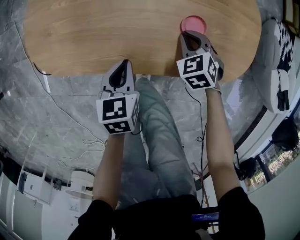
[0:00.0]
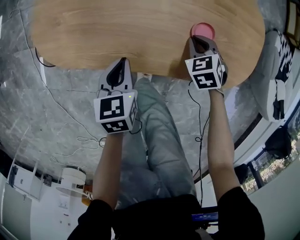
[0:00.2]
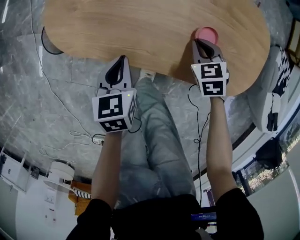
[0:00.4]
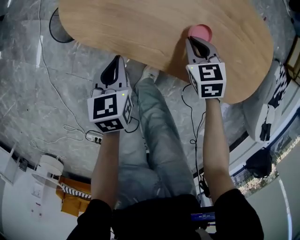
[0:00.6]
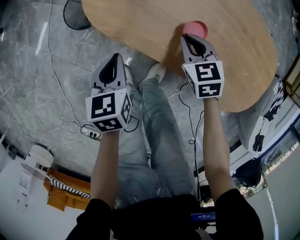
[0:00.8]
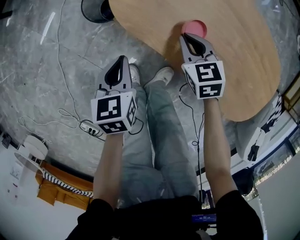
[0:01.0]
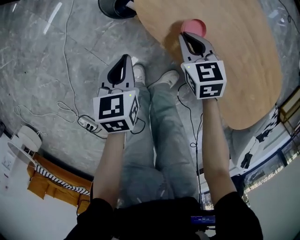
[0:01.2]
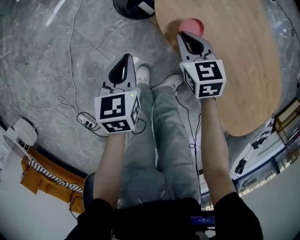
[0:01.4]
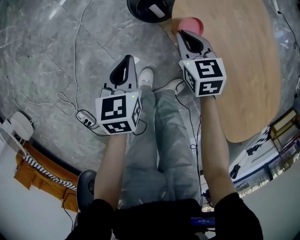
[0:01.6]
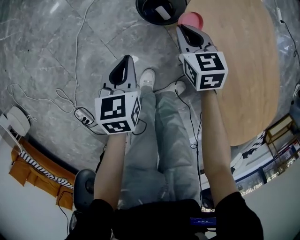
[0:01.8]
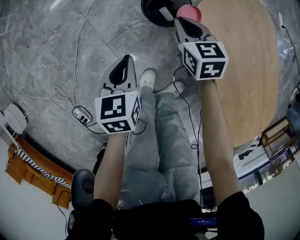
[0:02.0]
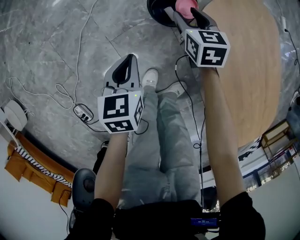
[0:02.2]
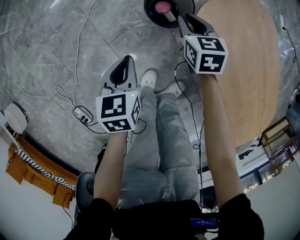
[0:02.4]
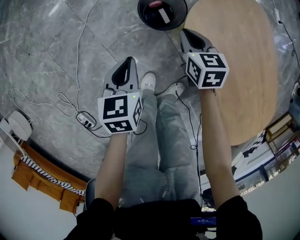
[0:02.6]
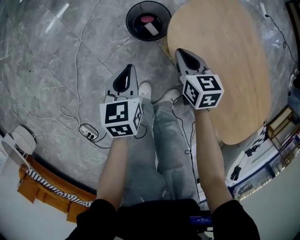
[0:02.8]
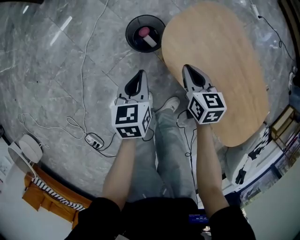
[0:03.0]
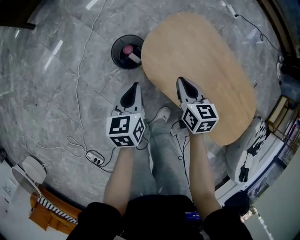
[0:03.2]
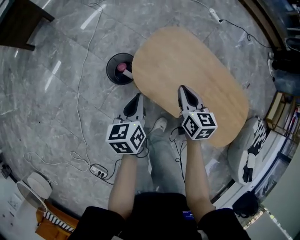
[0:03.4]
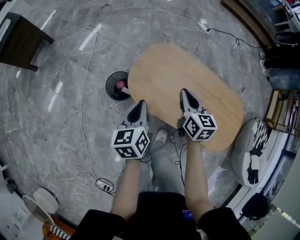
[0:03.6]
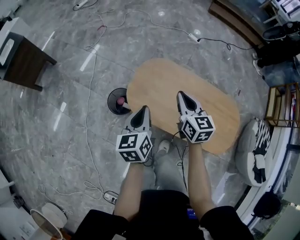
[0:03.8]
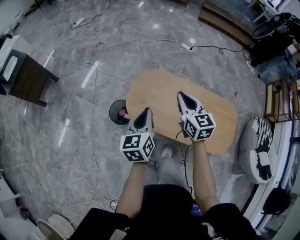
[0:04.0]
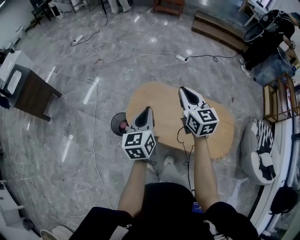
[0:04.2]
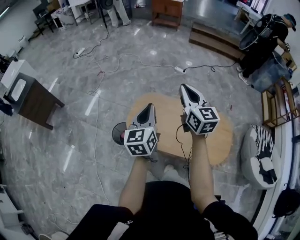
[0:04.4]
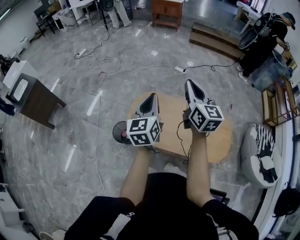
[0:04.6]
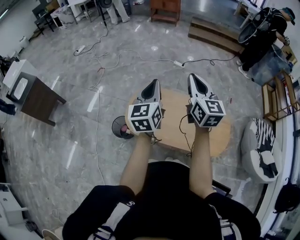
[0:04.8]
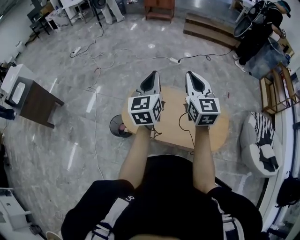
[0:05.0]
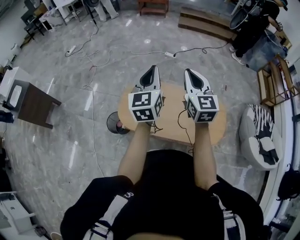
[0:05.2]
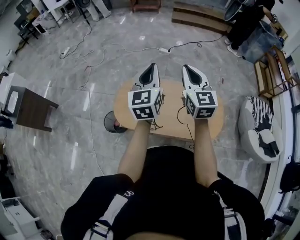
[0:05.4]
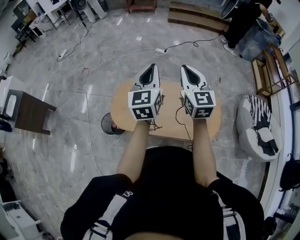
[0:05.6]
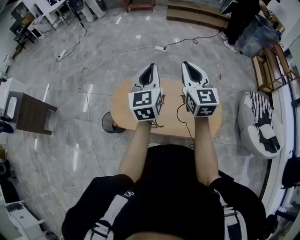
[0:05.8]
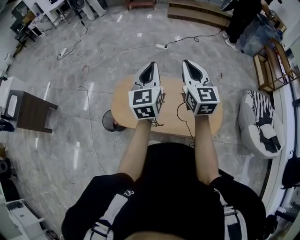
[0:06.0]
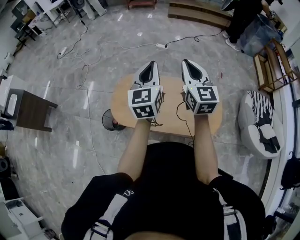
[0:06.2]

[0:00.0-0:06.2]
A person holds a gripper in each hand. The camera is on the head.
0:00.0 to 0:01.6: The pair of grippers is taken about 50 cm. The right gripper changes its angle by approximately 40 degrees, while the left gripper swivels some 50 degrees.
0:01.6 to 0:03.2: Both grippers move upward and to the right, roughly 15 cm. The right gripper changes its angle by some 30 degrees, and opens, then closes once more.
0:03.2 to 0:04.6: The grippers both shift upward and to the right by some 50 cm. The left gripper tips its fingers upward by some 30 degrees. Meanwhile the right gripper tilts its fingers some 40 degrees upward.
0:04.6 to 0:06.2: The two grippers go about 15 cm to the right.

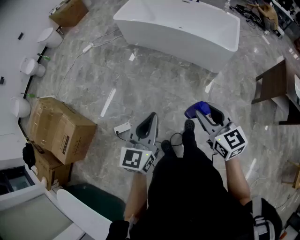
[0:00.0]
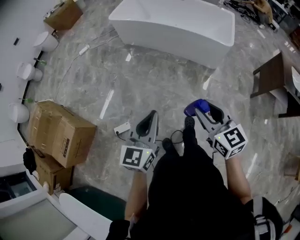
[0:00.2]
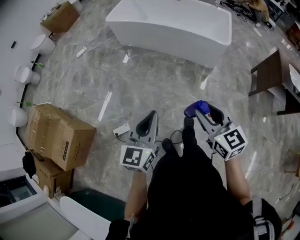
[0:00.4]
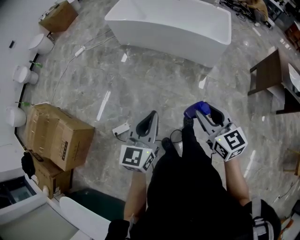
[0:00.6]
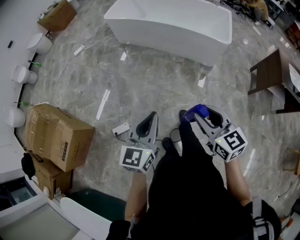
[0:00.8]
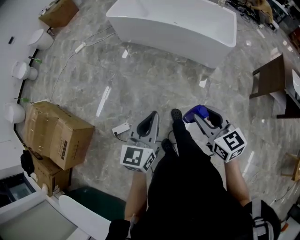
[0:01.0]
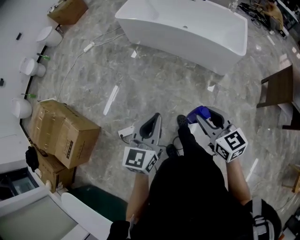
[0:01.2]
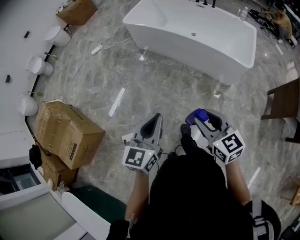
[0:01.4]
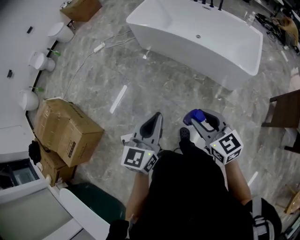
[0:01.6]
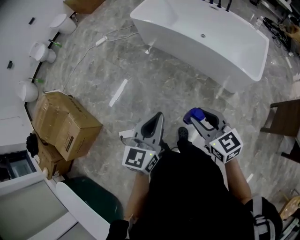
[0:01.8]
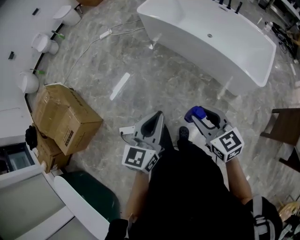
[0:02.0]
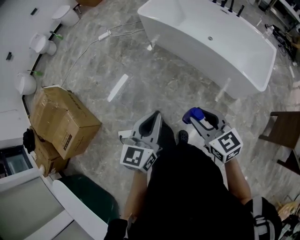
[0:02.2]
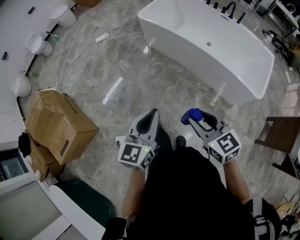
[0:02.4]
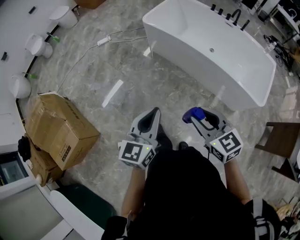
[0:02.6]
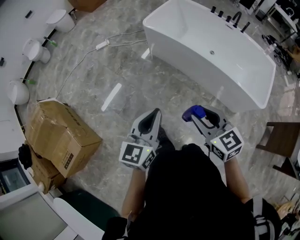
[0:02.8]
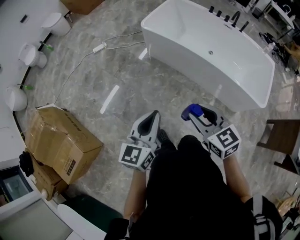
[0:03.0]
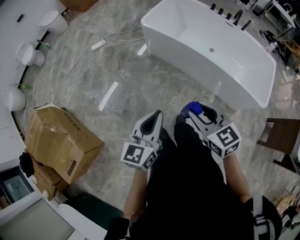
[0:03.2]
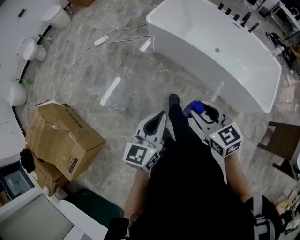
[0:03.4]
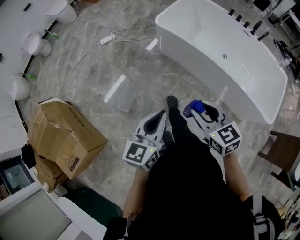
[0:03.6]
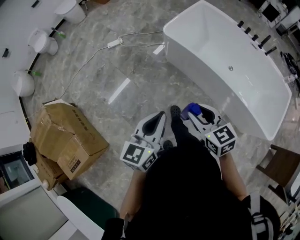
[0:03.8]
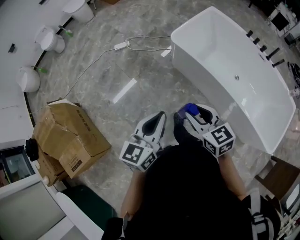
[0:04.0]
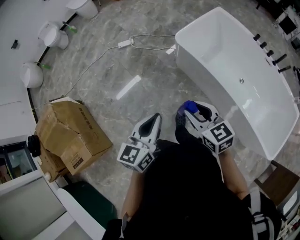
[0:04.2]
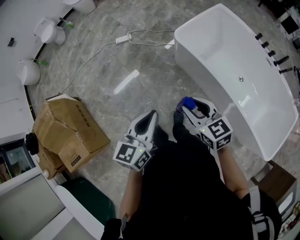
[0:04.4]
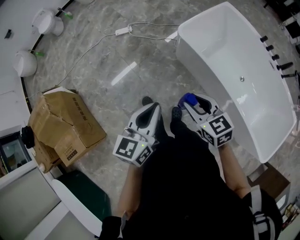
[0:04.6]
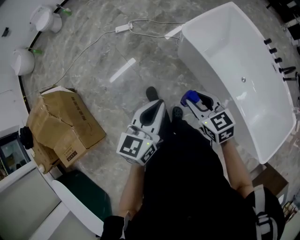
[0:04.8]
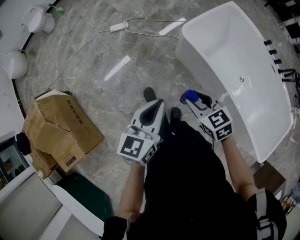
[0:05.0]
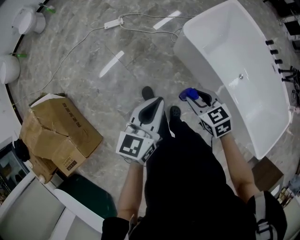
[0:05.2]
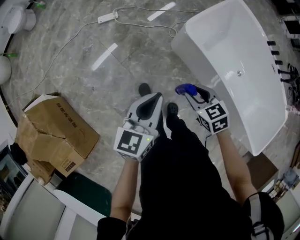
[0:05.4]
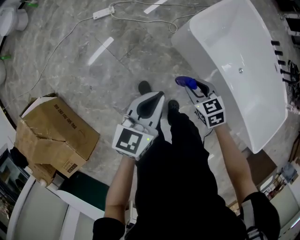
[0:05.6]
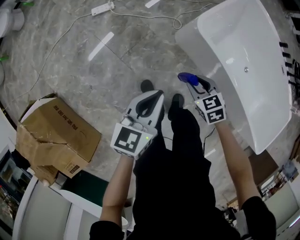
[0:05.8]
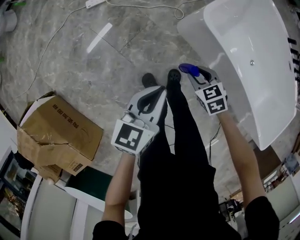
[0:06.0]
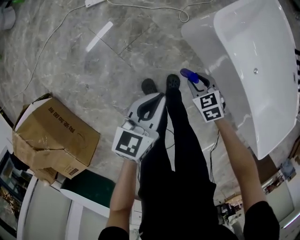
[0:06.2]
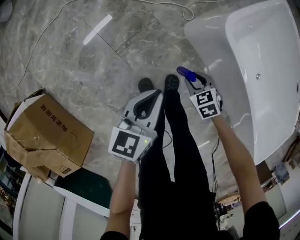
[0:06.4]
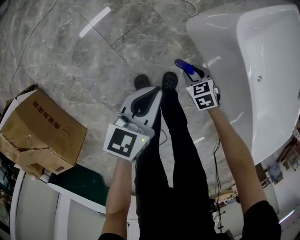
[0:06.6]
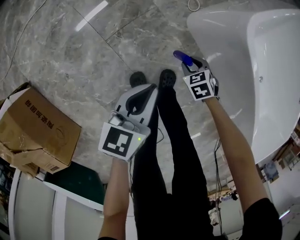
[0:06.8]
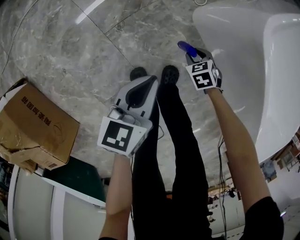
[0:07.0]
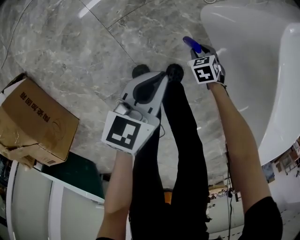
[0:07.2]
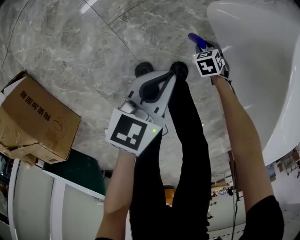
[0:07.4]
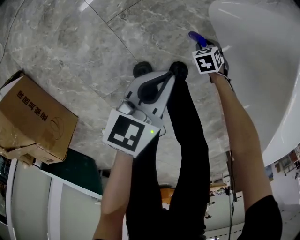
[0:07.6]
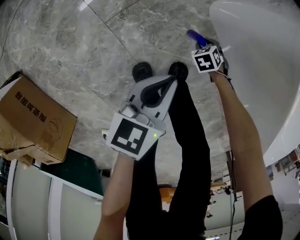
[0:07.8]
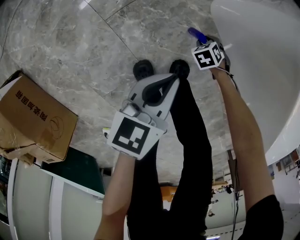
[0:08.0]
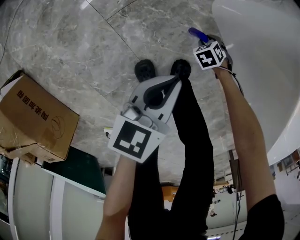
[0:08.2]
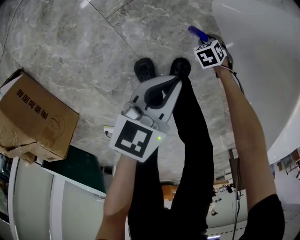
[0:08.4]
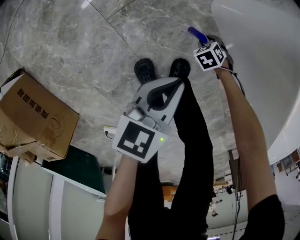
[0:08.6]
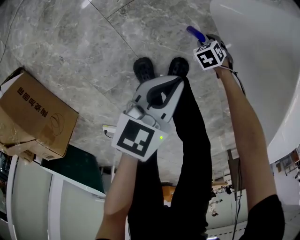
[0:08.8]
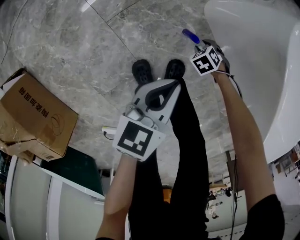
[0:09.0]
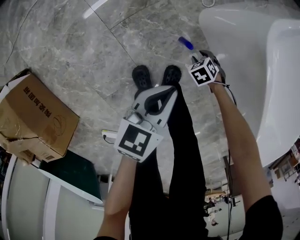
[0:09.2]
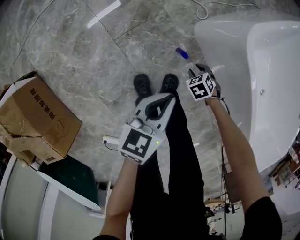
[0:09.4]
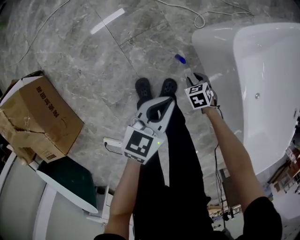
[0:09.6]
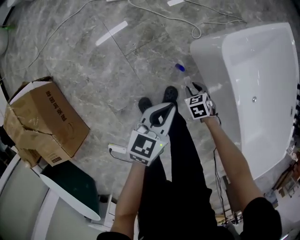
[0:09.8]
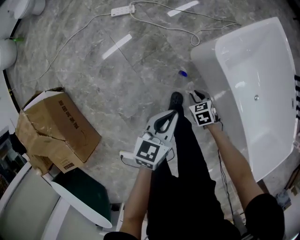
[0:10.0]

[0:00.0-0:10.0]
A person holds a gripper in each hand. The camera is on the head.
0:00.0 to 0:01.4: The grippers both shift forward by roughly 15 cm.
0:01.4 to 0:02.8: Both grippers travel together forward and to the left, roughly 35 cm.
0:02.8 to 0:04.2: The two grippers go some 35 cm forward.
0:04.2 to 0:05.8: Both grippers move forward and downward, roughly 40 cm. The right gripper points its fingers approximately 30 degrees further downward.
0:05.8 to 0:07.2: The two grippers go roughly 40 cm downward. The right gripper turns by some 20 degrees.
0:07.2 to 0:08.6: The right gripper travels downward by about 10 cm, while the left gripper ends up roughly 5 cm from where it was.
0:08.6 to 0:10.0: Both grippers travel together upward, about 40 cm. The right gripper swivels approximately 30 degrees.

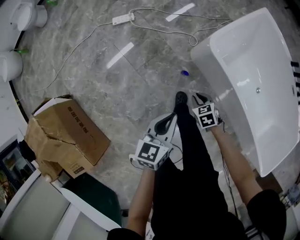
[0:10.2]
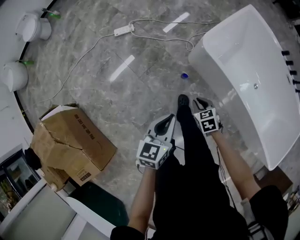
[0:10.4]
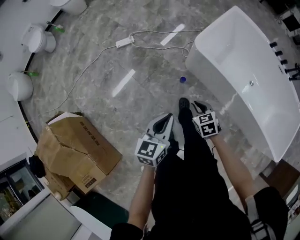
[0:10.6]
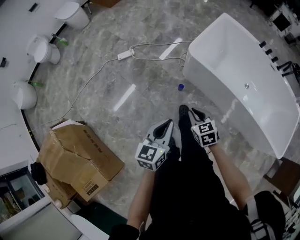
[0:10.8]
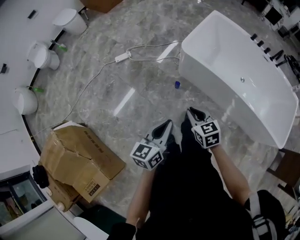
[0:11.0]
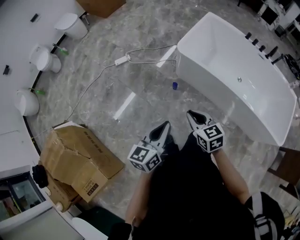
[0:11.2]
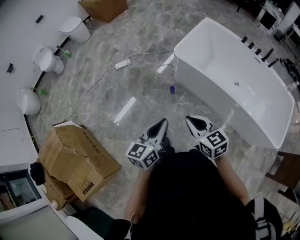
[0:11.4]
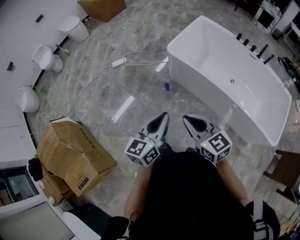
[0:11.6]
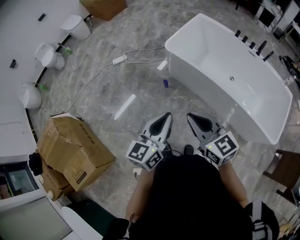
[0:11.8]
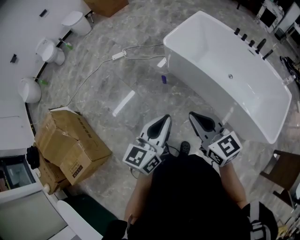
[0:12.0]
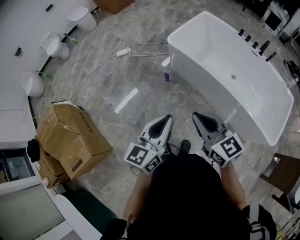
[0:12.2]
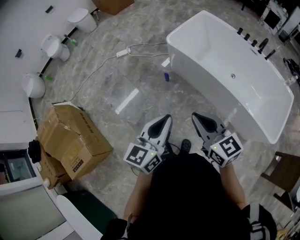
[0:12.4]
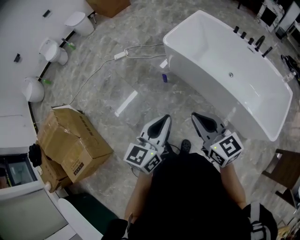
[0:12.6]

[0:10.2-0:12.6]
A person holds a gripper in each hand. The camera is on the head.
0:10.2 to 0:11.4: The right gripper travels upward and backward by roughly 50 cm, and tips its fingers upward by about 40 degrees; the left gripper moves backward and upward, some 40 cm.
0:11.4 to 0:12.6: Both grippers move backward, to the right and upward, approximately 25 cm.

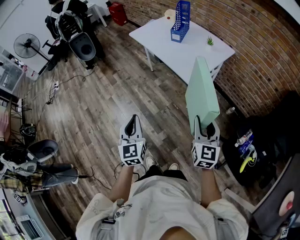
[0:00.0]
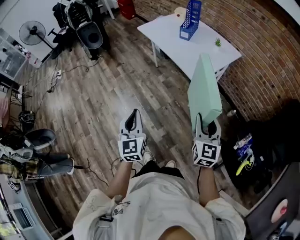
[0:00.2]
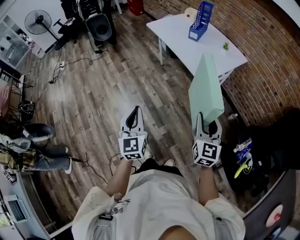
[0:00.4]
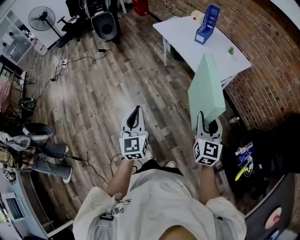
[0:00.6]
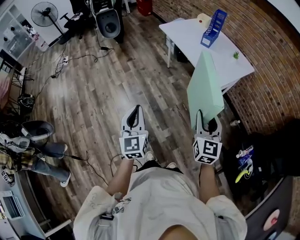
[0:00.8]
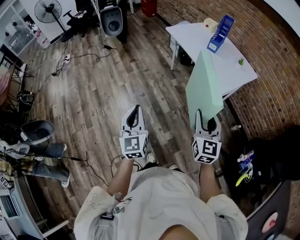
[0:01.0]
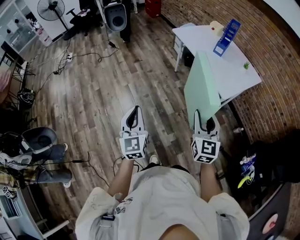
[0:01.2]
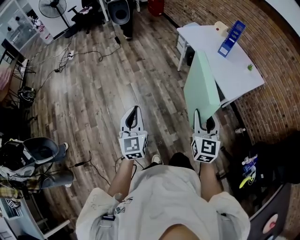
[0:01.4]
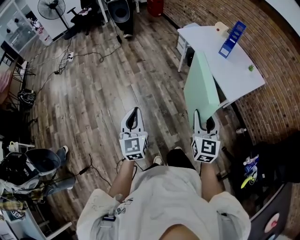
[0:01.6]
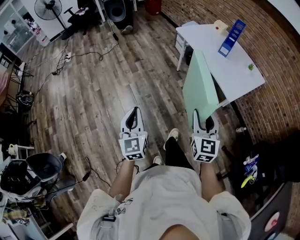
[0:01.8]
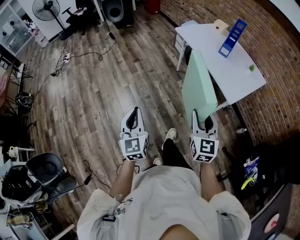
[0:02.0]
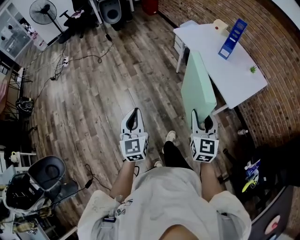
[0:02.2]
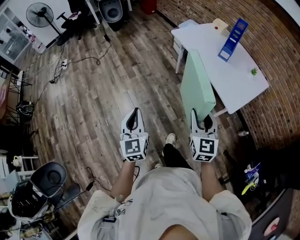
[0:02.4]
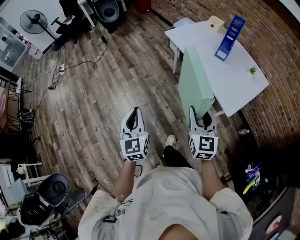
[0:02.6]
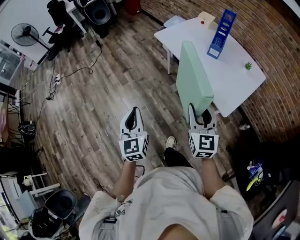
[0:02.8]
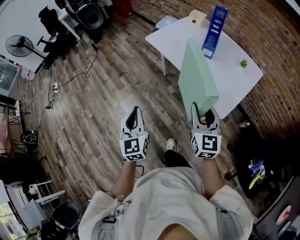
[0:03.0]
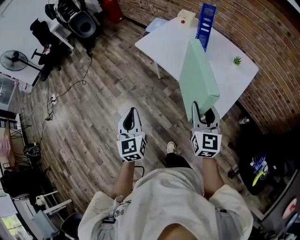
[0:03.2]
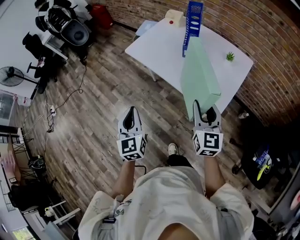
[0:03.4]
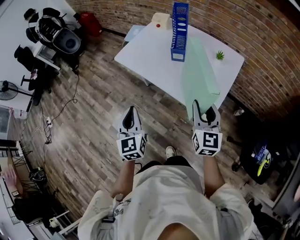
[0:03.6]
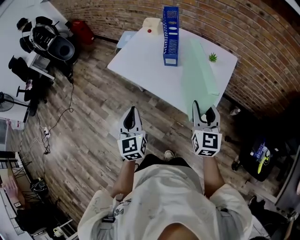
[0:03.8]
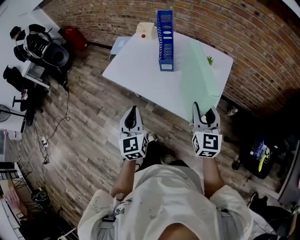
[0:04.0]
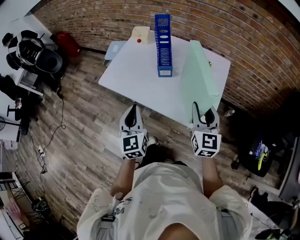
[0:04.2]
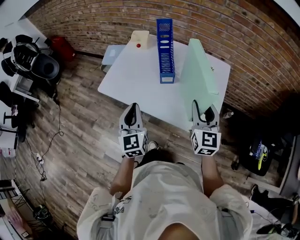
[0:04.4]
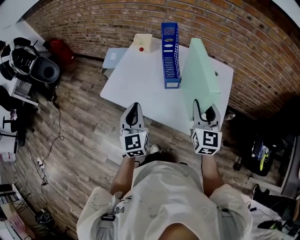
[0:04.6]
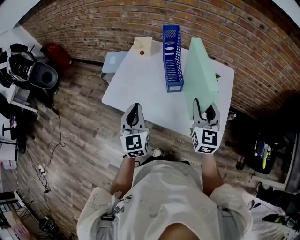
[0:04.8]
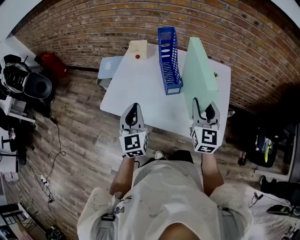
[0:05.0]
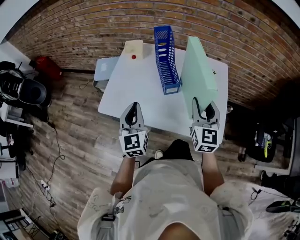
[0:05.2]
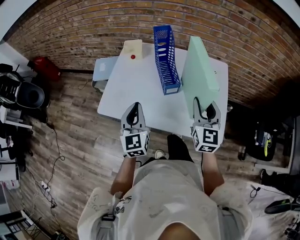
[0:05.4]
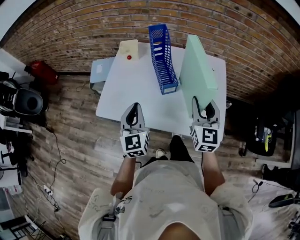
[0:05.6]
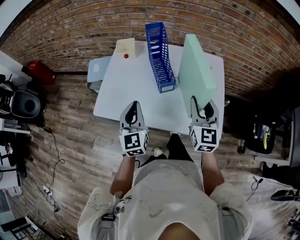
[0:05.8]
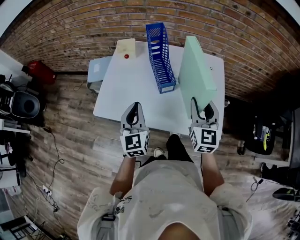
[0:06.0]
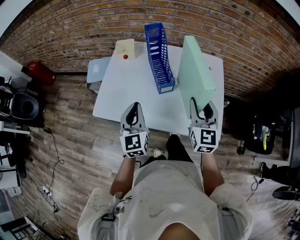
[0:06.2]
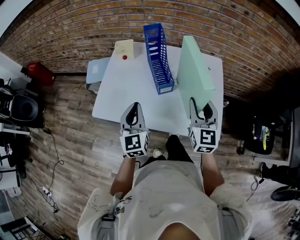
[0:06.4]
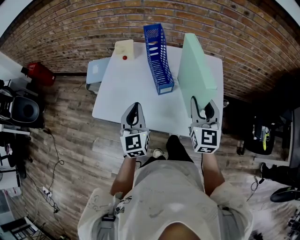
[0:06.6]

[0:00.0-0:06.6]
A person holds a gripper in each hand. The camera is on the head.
0:00.0 to 0:01.6: The two grippers go roughly 25 cm to the left.
0:01.6 to 0:03.2: The two grippers go about 30 cm forward and to the right.
0:03.2 to 0:05.0: The right gripper changes place by approximately 20 cm, and swivels some 30 degrees. The left gripper moves approximately 35 cm, and swivels roughly 30 degrees.
0:05.0 to 0:06.6: The grippers move only a little.
